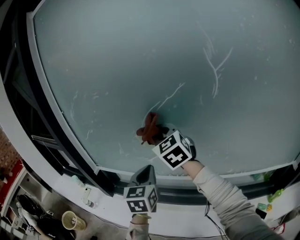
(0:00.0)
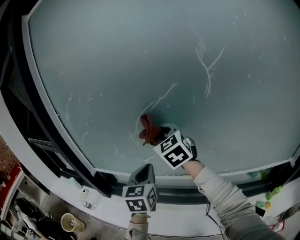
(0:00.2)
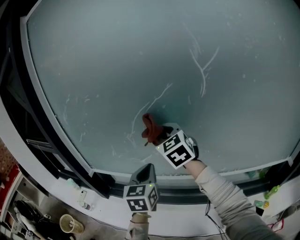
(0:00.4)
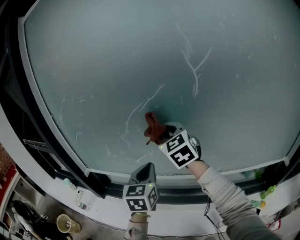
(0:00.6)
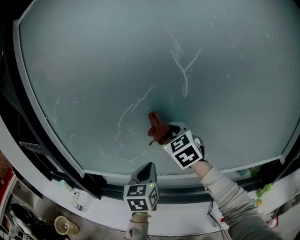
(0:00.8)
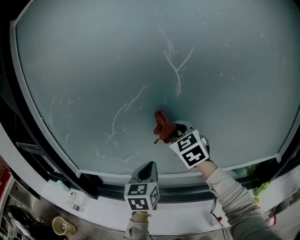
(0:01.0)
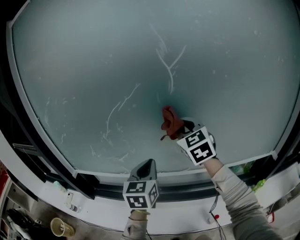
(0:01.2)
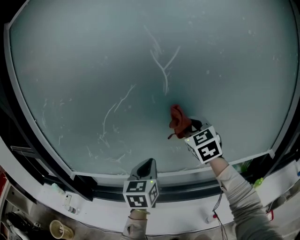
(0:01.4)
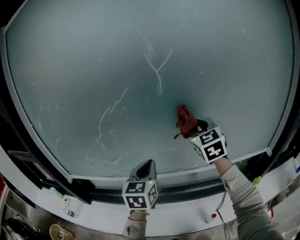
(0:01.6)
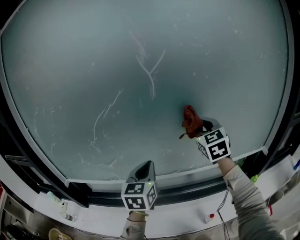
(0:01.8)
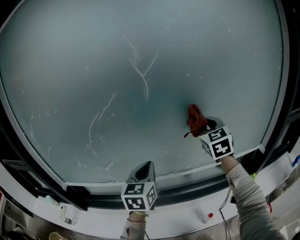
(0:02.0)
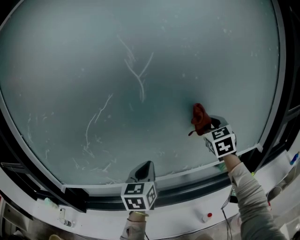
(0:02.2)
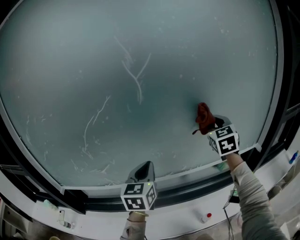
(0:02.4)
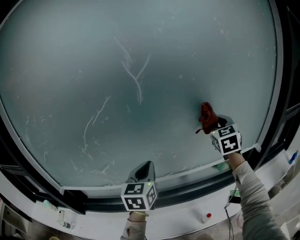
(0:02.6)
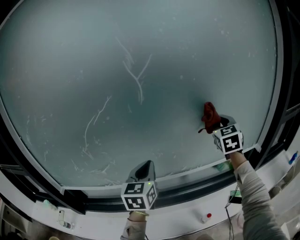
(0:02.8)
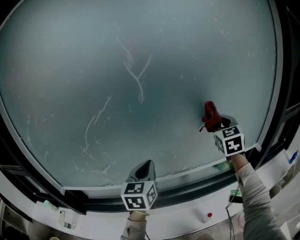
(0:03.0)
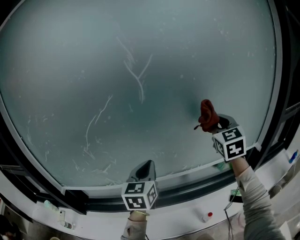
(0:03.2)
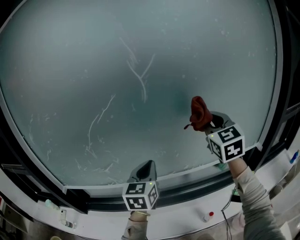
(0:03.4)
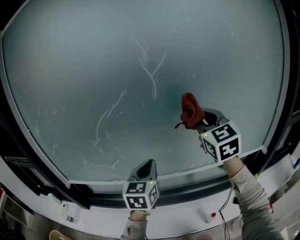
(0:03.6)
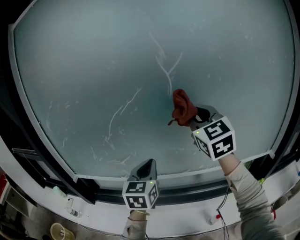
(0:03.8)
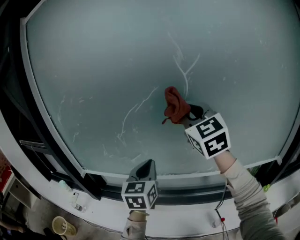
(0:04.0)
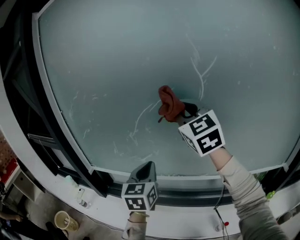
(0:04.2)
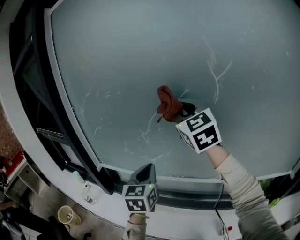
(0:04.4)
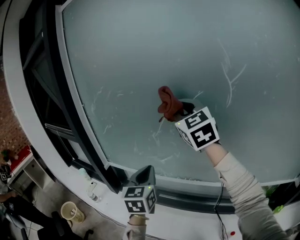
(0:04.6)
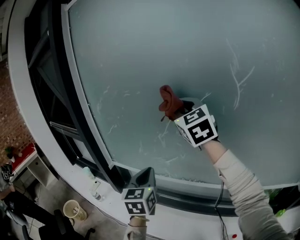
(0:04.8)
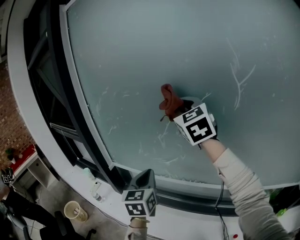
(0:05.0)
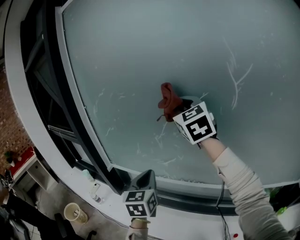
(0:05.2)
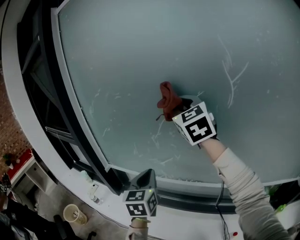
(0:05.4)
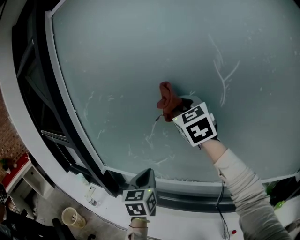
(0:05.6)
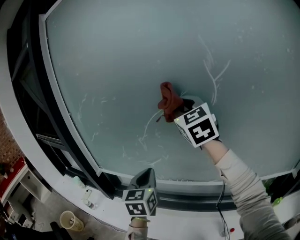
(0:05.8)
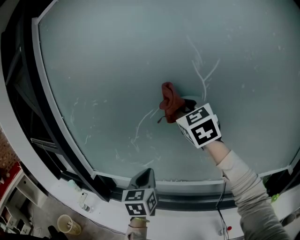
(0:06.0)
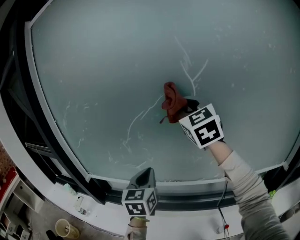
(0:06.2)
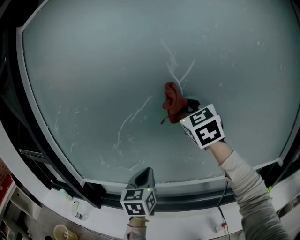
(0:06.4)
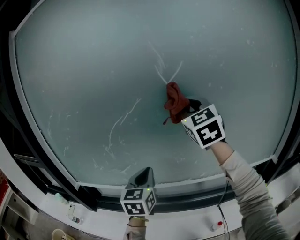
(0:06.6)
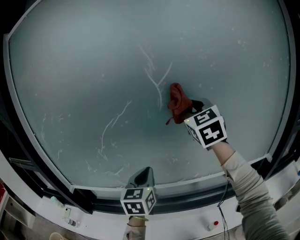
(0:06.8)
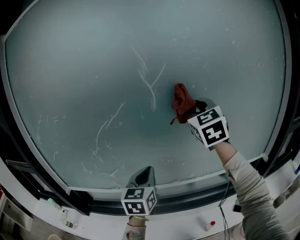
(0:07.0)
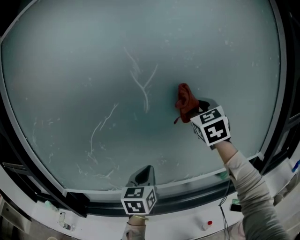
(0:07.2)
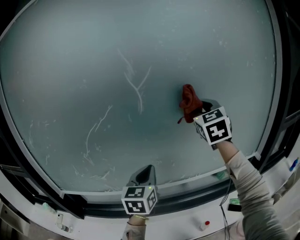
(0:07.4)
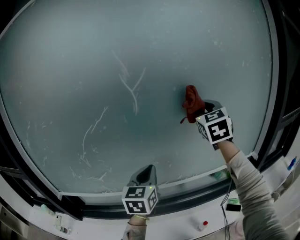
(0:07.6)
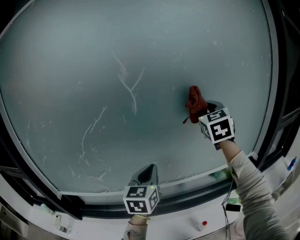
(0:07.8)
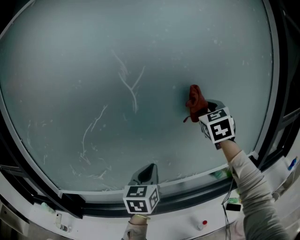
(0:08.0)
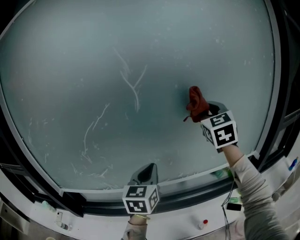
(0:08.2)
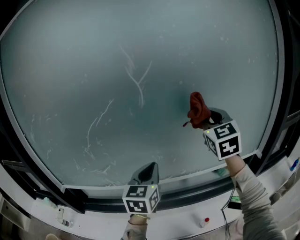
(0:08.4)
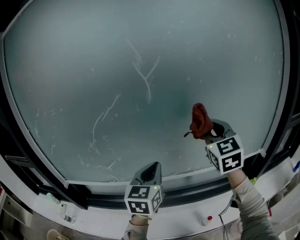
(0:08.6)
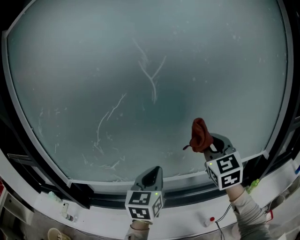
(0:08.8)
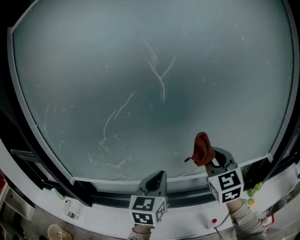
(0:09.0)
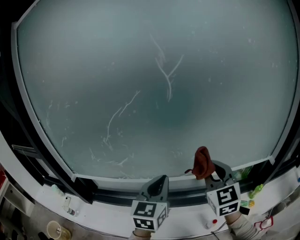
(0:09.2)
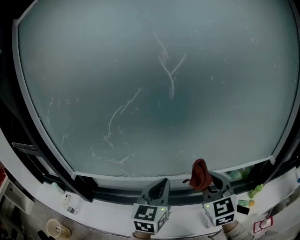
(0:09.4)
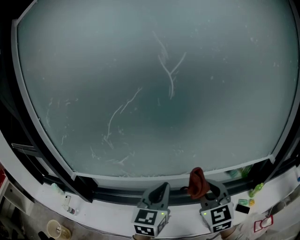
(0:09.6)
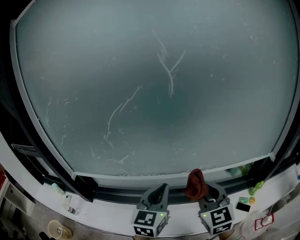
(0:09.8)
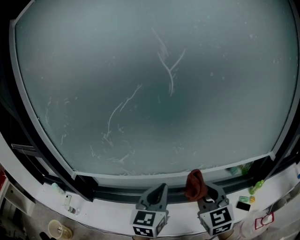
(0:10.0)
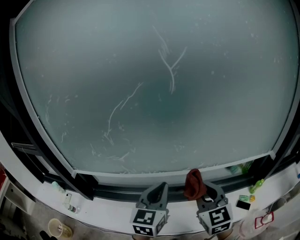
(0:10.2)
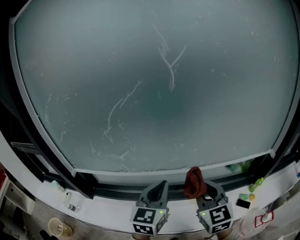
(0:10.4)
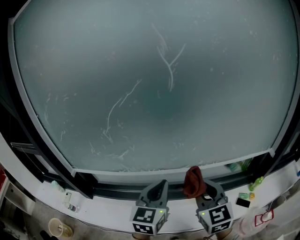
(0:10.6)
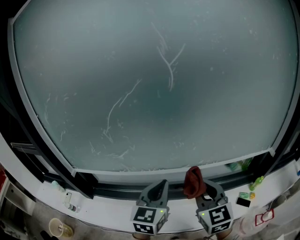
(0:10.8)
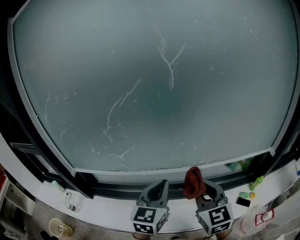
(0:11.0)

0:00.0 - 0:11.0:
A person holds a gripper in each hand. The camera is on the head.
0:00.0 - 0:01.6: The right gripper travels to the right by roughly 35 cm, and turns by approximately 30 degrees; the left gripper is displaced to the right by about 15 cm.
0:01.6 - 0:03.2: The right gripper heads to the right, covering about 15 cm.
0:03.2 - 0:04.8: The left gripper changes place by about 30 cm, and rotates roughly 30 degrees; the right gripper changes place by roughly 50 cm, and rotates approximately 40 degrees.
0:04.8 - 0:06.2: Both grippers travel together to the right, approximately 15 cm.
0:06.2 - 0:07.8: The left gripper is displaced to the right by approximately 20 cm, while the right gripper heads to the right, covering approximately 30 cm, and swivels approximately 30 degrees.
0:07.8 - 0:09.4: The right gripper travels downward, backward and to the left by approximately 30 cm, and swivels roughly 20 degrees; the left gripper goes about 10 cm backward and to the left.
0:09.4 - 0:11.0: The right gripper shifts by approximately 5 cm.

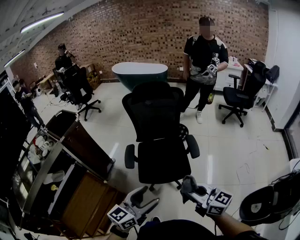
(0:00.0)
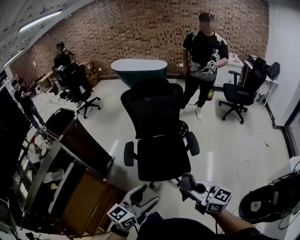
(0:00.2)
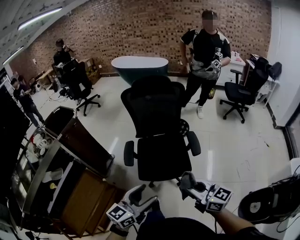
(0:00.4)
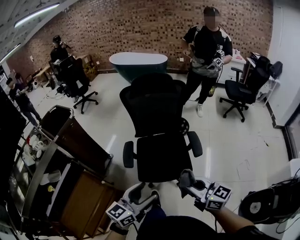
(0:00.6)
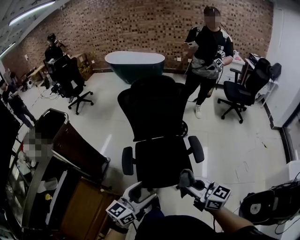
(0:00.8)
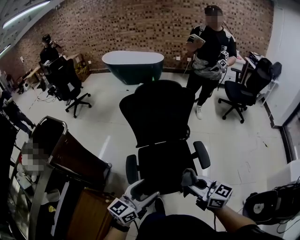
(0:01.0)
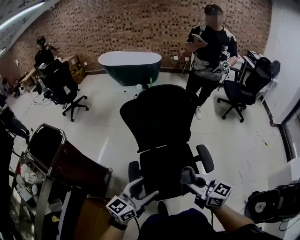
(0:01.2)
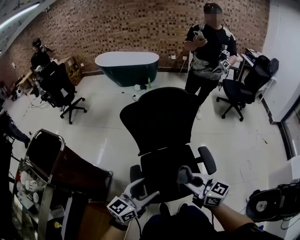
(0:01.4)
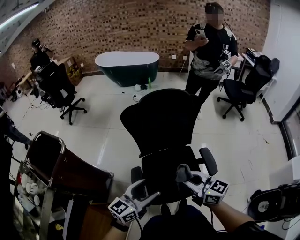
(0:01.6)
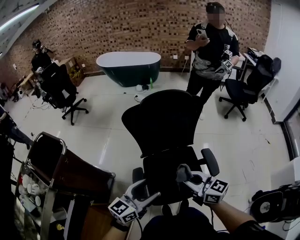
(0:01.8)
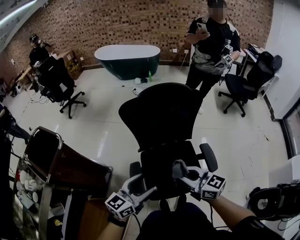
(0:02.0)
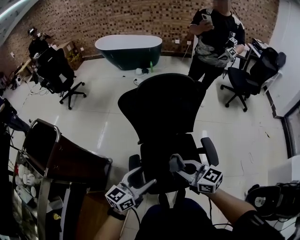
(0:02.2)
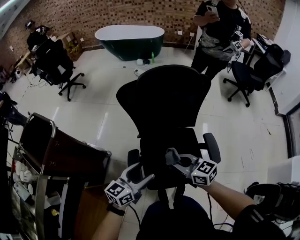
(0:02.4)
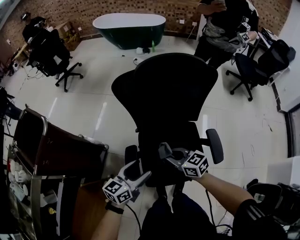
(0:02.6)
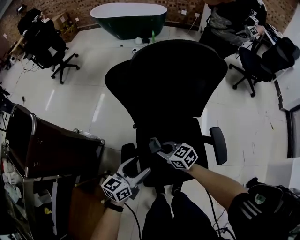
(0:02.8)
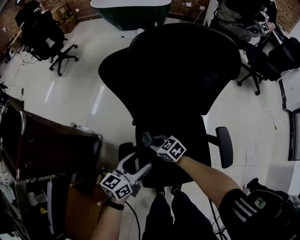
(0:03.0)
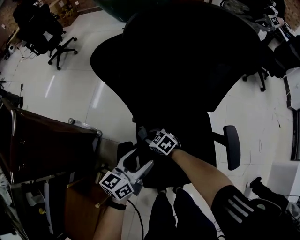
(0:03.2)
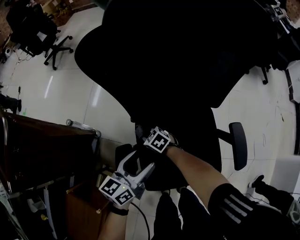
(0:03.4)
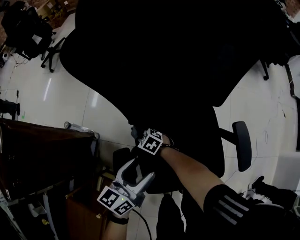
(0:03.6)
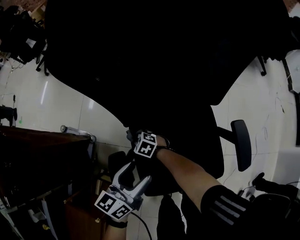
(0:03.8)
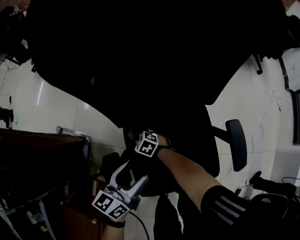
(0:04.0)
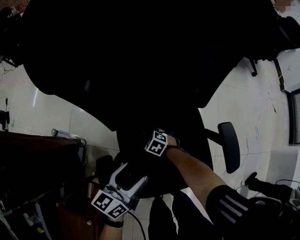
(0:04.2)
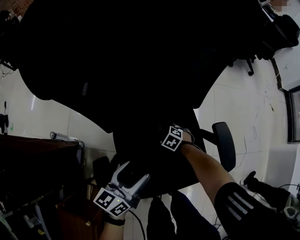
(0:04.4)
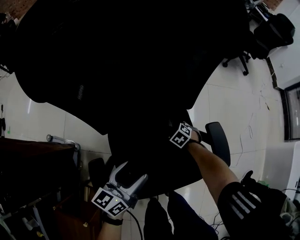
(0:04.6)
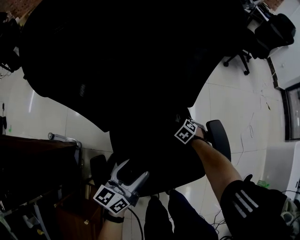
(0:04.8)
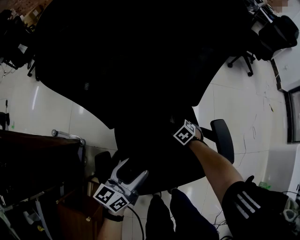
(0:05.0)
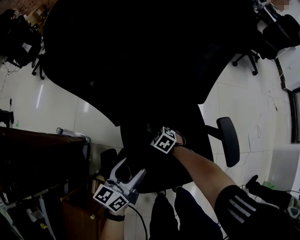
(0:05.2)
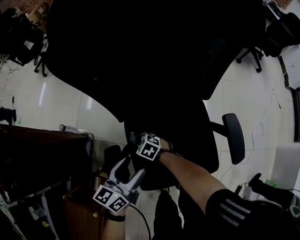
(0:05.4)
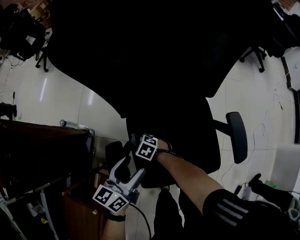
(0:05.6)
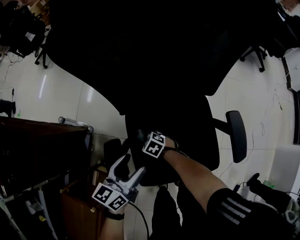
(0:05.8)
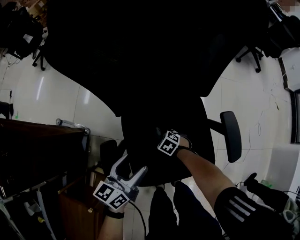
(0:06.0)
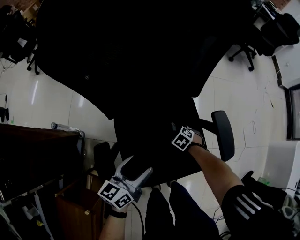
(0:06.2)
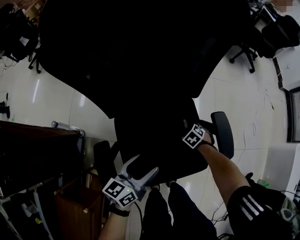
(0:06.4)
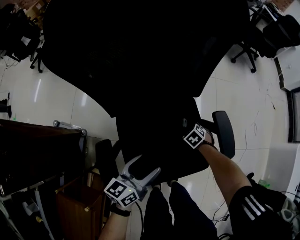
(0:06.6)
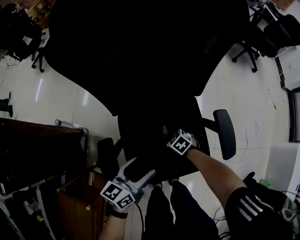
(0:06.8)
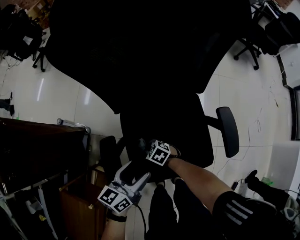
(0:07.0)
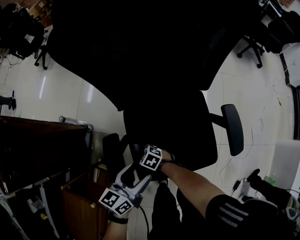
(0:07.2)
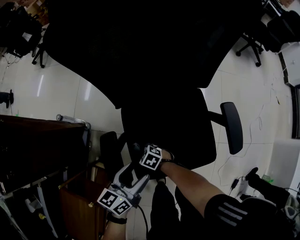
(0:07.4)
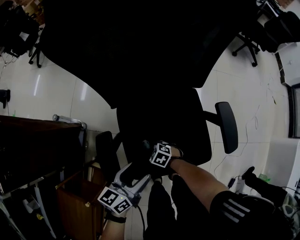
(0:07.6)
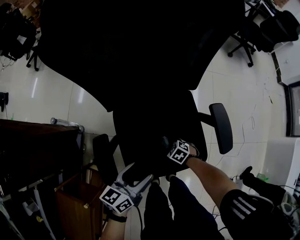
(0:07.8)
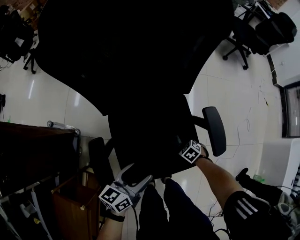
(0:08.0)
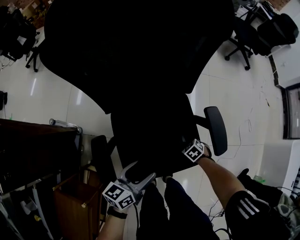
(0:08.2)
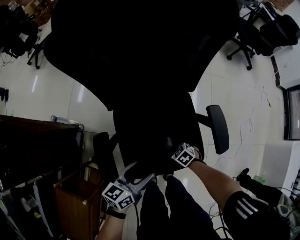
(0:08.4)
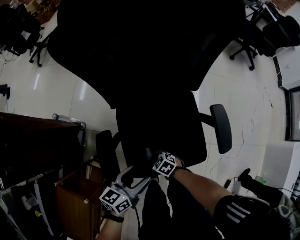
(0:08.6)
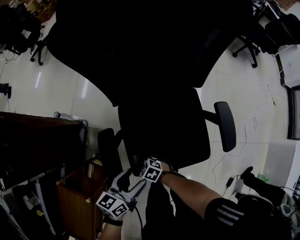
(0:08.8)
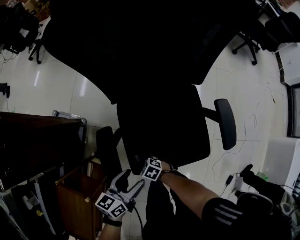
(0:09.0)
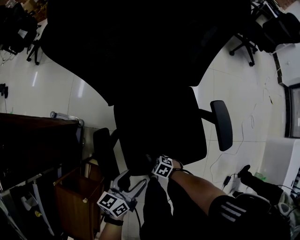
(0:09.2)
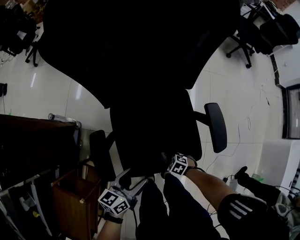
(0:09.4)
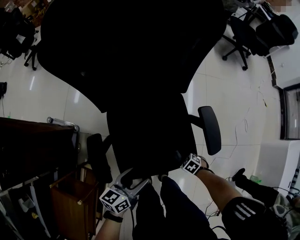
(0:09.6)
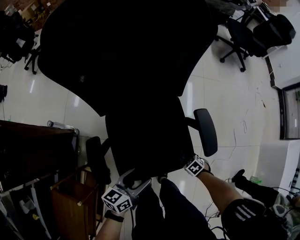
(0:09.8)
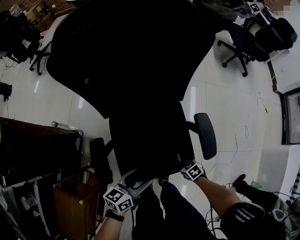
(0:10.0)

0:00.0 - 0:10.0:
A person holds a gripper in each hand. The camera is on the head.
0:00.0 - 0:01.4: Both grippers move forward, approximately 30 cm.
0:01.4 - 0:02.8: Both grippers travel together downward and forward, some 30 cm. The left gripper swivels about 20 degrees; the right gripper rotates approximately 30 degrees.
0:02.8 - 0:04.2: The left gripper moves downward, to the right and forward, about 15 cm; the right gripper is displaced downward by roughly 30 cm, and angles its fingers downward, by roughly 30 degrees.
0:04.2 - 0:05.8: The left gripper ends up some 5 cm from where it was.
0:05.8 - 0:07.2: The left gripper ends up about 5 cm from where it was.
0:08.6 - 0:10.0: The right gripper ends up roughly 25 cm from where it was, and swivels roughly 20 degrees, while the left gripper moves about 10 cm.

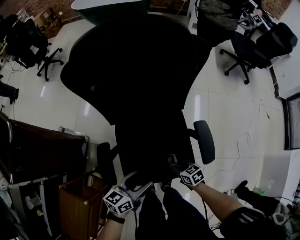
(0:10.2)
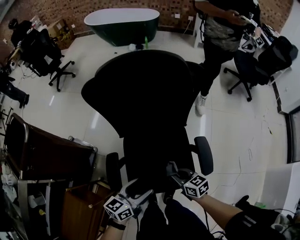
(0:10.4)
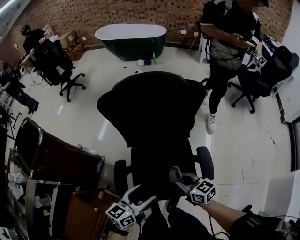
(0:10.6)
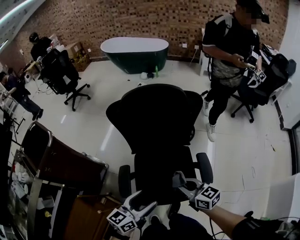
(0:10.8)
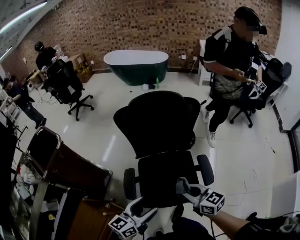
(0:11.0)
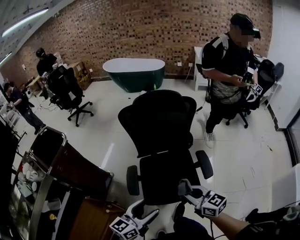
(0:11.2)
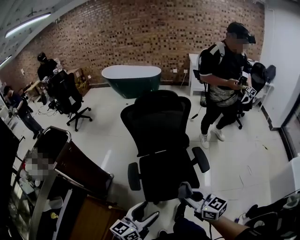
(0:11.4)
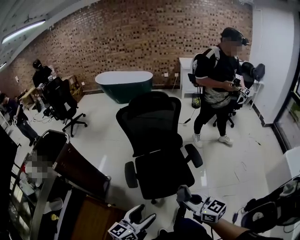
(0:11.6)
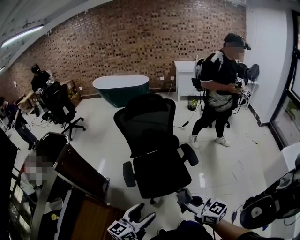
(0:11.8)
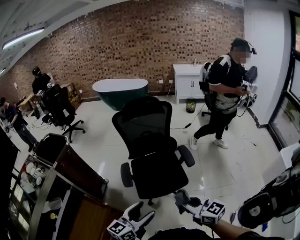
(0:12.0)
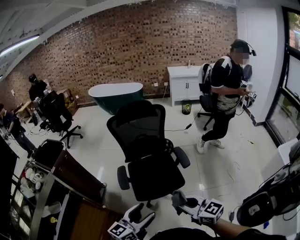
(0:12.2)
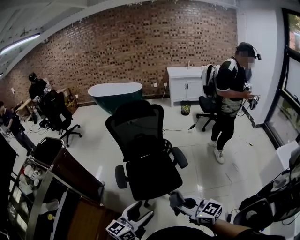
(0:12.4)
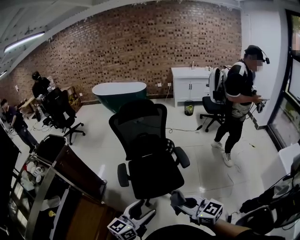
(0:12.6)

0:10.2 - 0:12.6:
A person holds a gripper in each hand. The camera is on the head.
0:10.2 - 0:11.4: Both grippers move upward and backward, approximately 40 cm. The left gripper turns by roughly 30 degrees. Meanwhile the right gripper tilts its fingers about 40 degrees upward.
0:11.4 - 0:12.6: The left gripper travels backward, to the right and upward by roughly 15 cm, while the right gripper heads backward and upward, covering roughly 20 cm.
